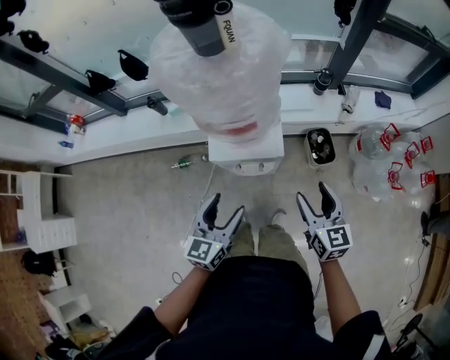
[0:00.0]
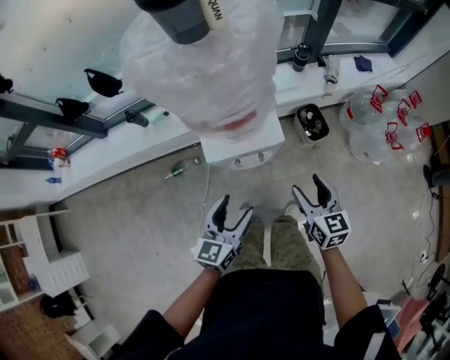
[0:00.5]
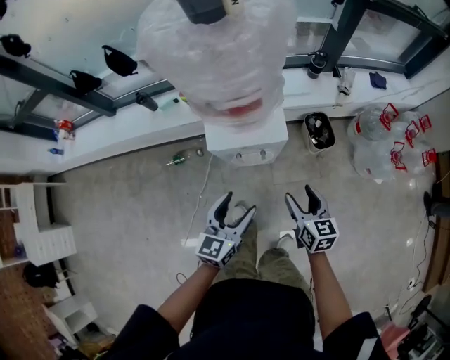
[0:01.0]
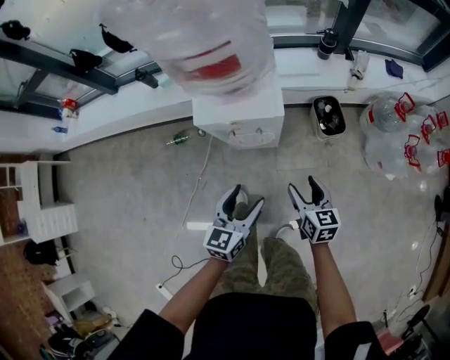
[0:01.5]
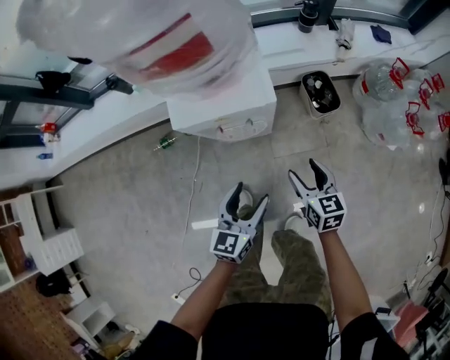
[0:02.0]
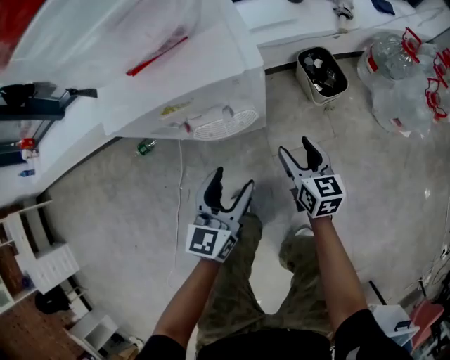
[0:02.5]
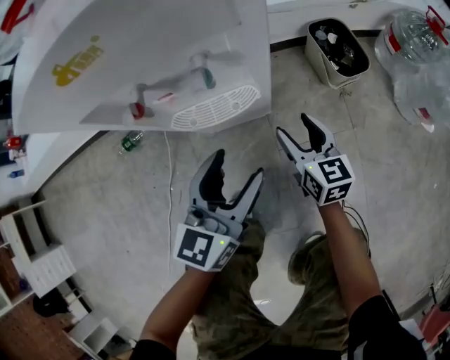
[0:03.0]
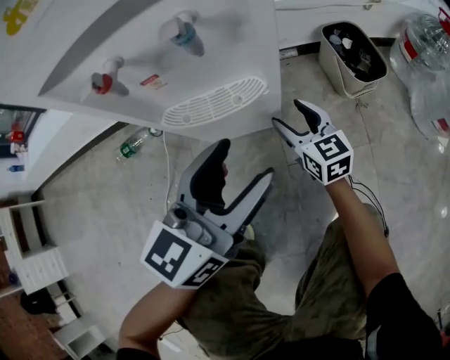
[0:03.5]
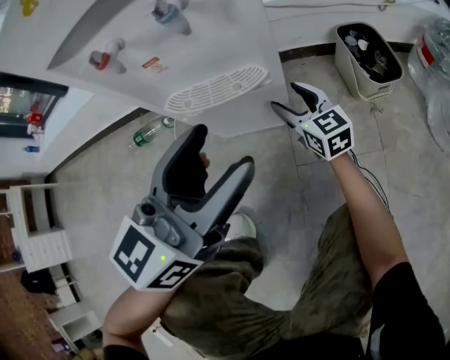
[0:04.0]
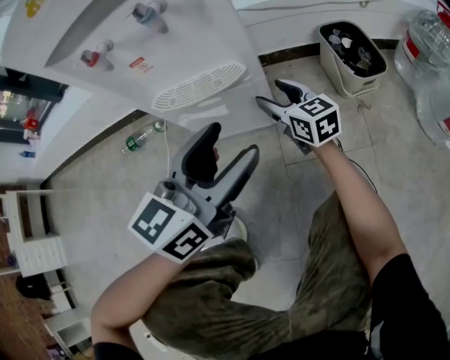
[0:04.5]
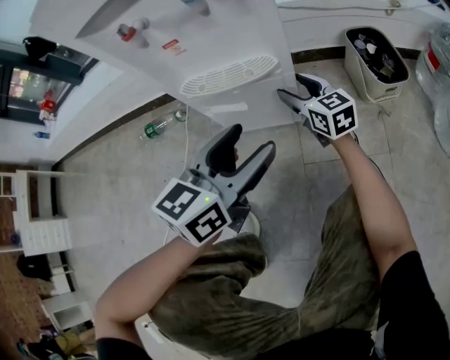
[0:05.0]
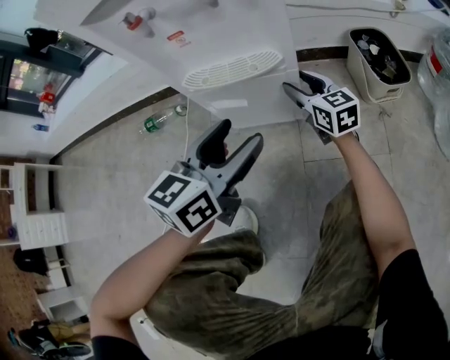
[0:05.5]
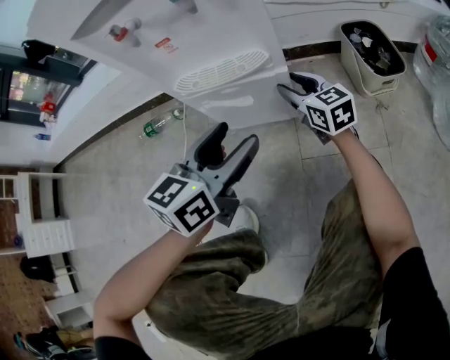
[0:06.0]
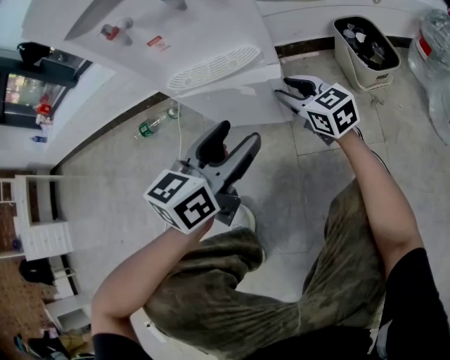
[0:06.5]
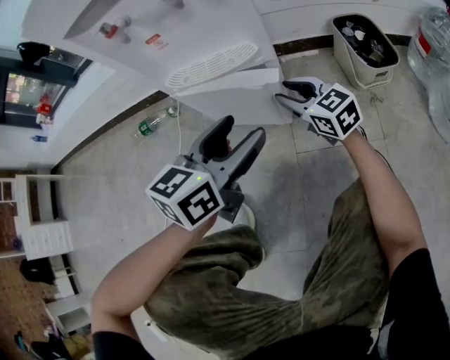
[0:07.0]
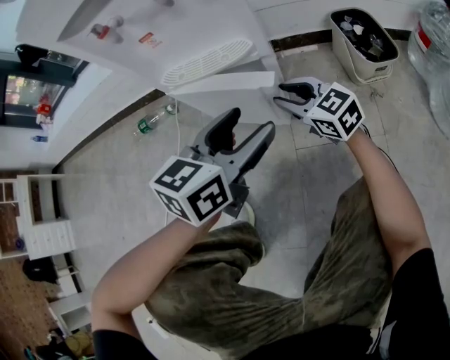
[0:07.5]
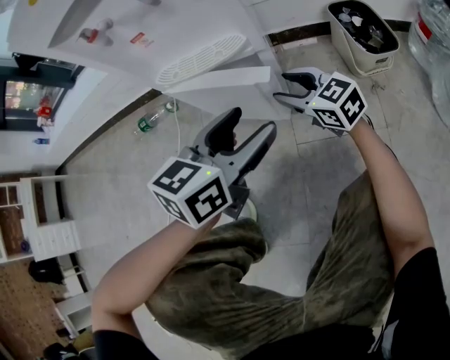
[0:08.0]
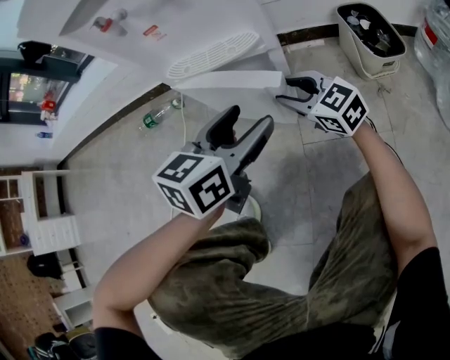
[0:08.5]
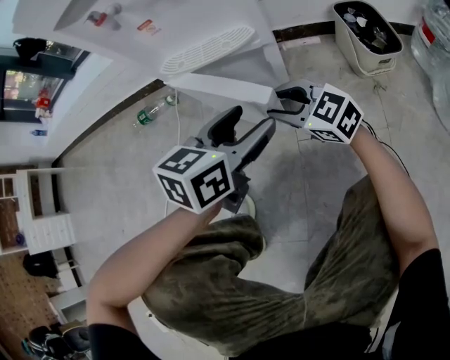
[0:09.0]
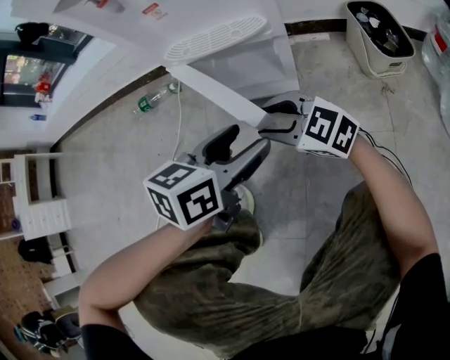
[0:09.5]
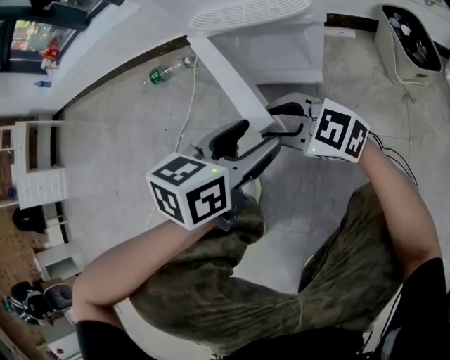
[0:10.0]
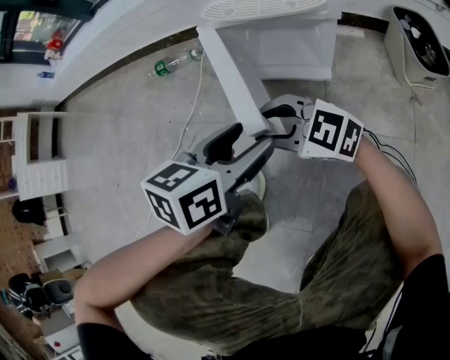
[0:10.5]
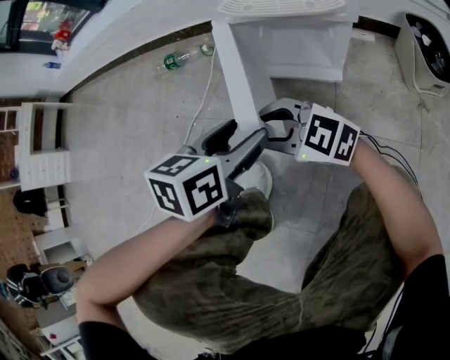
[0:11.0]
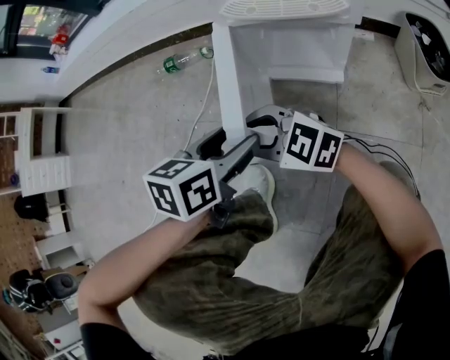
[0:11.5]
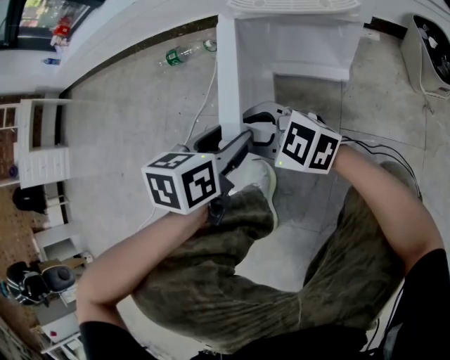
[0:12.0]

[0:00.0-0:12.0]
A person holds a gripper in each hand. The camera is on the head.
0:00.0 to 0:02.0: Both grippers travel together downward, approximately 25 cm.
0:02.0 to 0:04.0: The right gripper goes some 40 cm downward, and rotates roughly 30 degrees; the left gripper moves downward, roughly 25 cm.
0:04.0 to 0:06.0: The left gripper is displaced downward by about 10 cm.
0:06.0 to 0:08.0: The left gripper is displaced to the right by approximately 5 cm; the right gripper travels backward by about 5 cm.
0:08.0 to 0:10.0: The left gripper shifts about 10 cm to the left and downward, while the right gripper is displaced to the left and backward by some 20 cm, and turns by roughly 30 degrees.
0:10.0 to 0:12.0: Both grippers travel together to the left, approximately 10 cm.

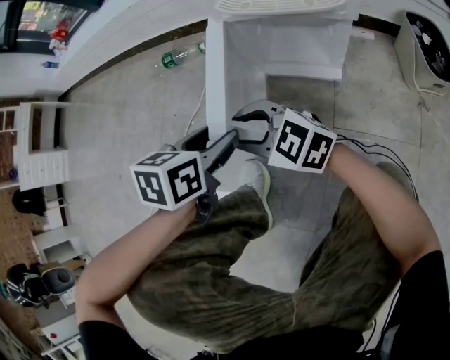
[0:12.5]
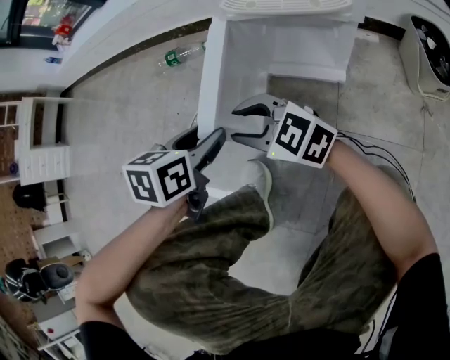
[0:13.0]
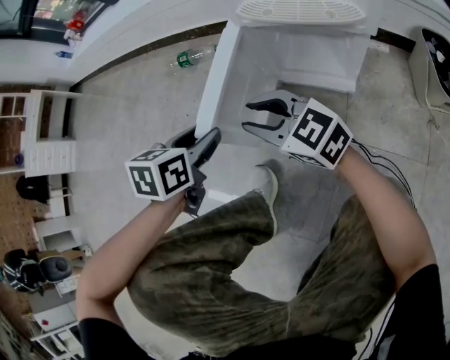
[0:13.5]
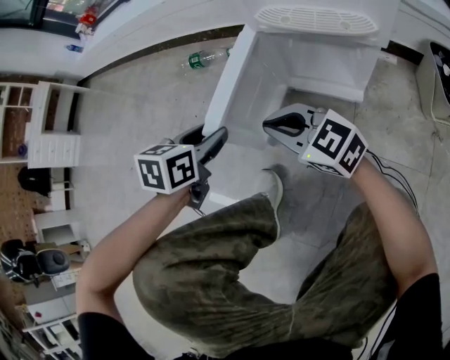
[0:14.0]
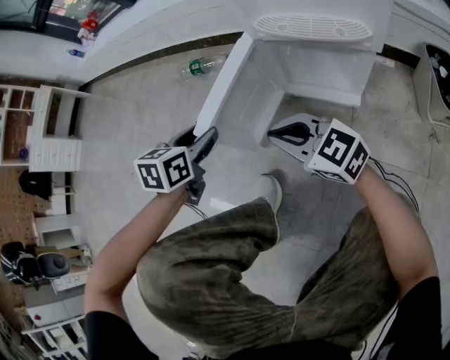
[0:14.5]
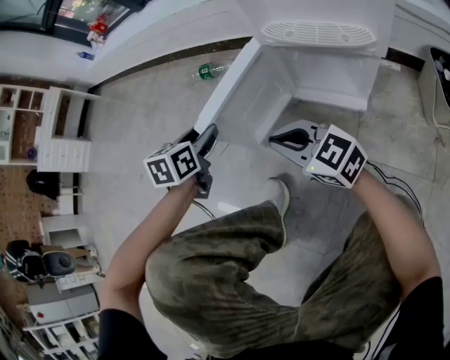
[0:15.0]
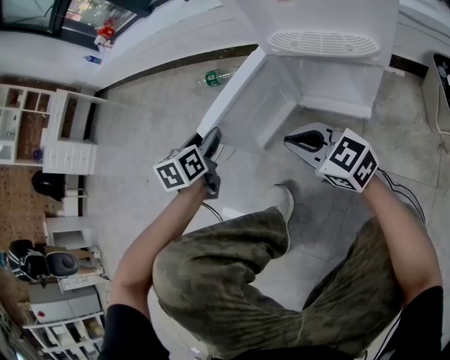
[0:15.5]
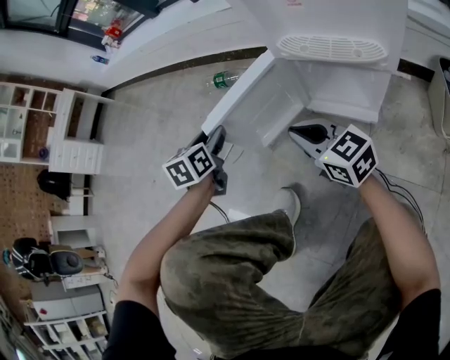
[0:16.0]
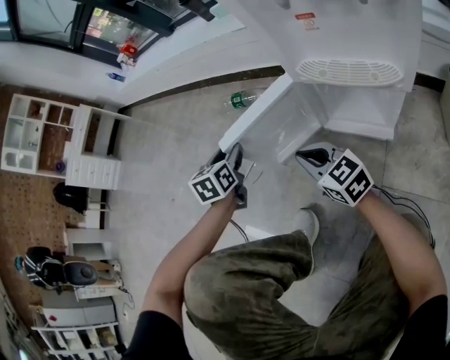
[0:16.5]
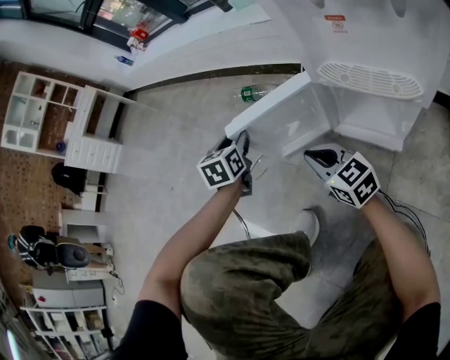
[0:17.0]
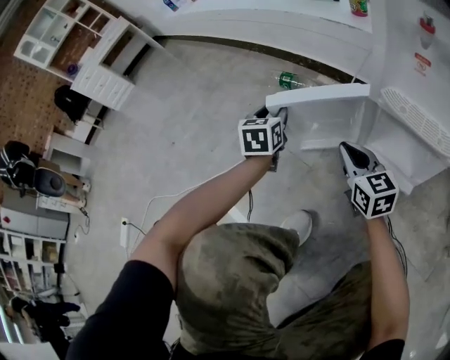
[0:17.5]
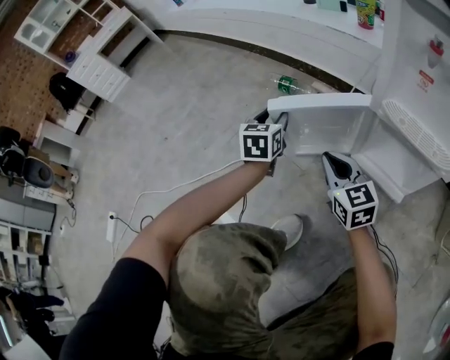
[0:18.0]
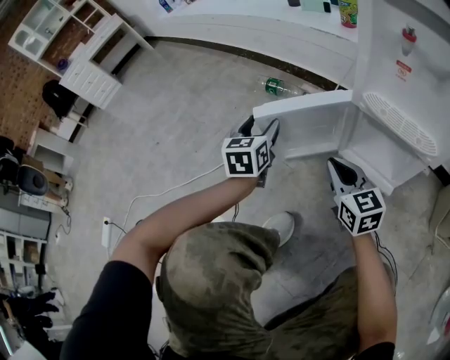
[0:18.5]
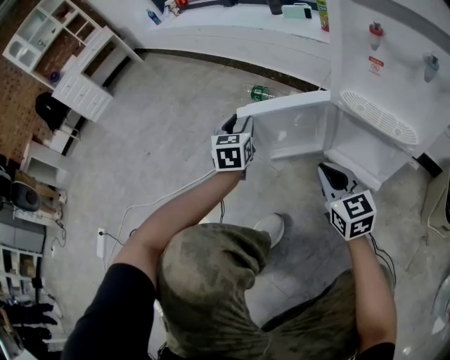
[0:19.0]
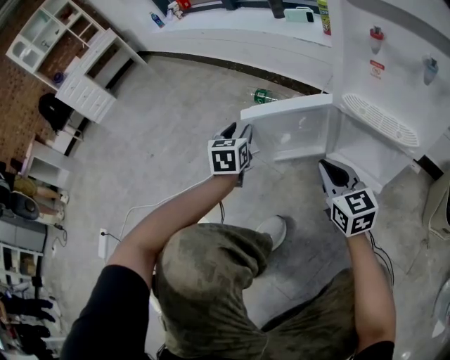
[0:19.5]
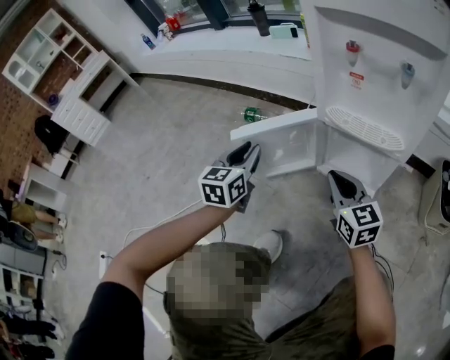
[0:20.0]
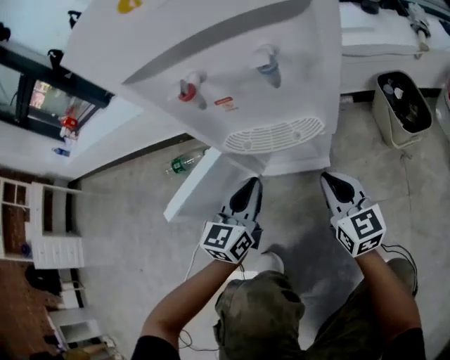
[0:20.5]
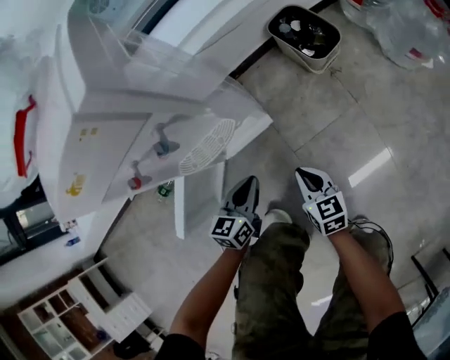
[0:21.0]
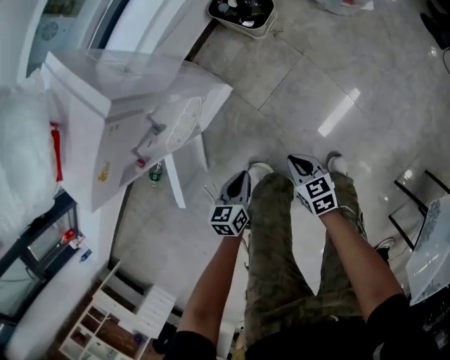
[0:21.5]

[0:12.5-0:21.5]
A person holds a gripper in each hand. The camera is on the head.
0:12.5 to 0:14.5: The left gripper moves to the left and forward, roughly 10 cm; the right gripper closes up.
0:14.5 to 0:17.0: The right gripper shifts roughly 10 cm forward. The left gripper travels forward by about 15 cm, and swivels roughly 30 degrees.
0:17.0 to 0:19.5: The right gripper is displaced upward by roughly 5 cm.
0:19.5 to 0:21.5: The left gripper ends up roughly 40 cm from where it was, rotates about 80 degrees, and closes its fingers, while the right gripper moves approximately 30 cm, and angles its fingers downward, by approximately 30 degrees.

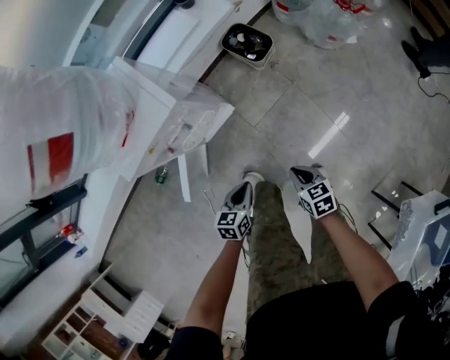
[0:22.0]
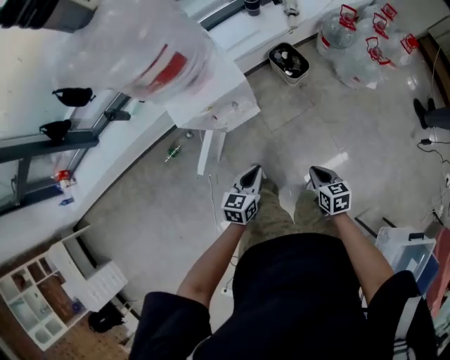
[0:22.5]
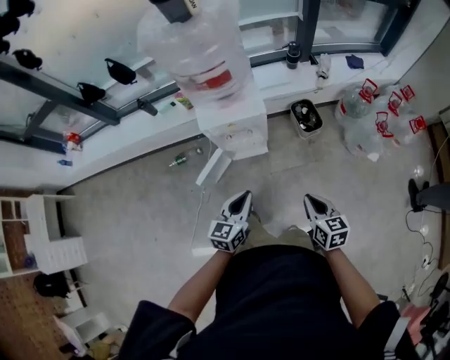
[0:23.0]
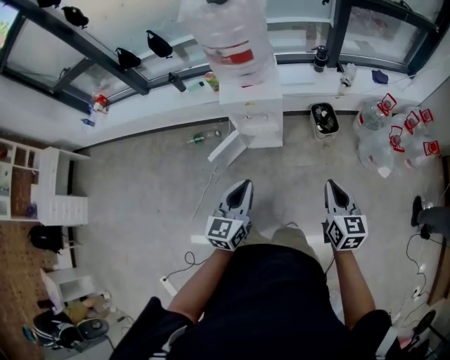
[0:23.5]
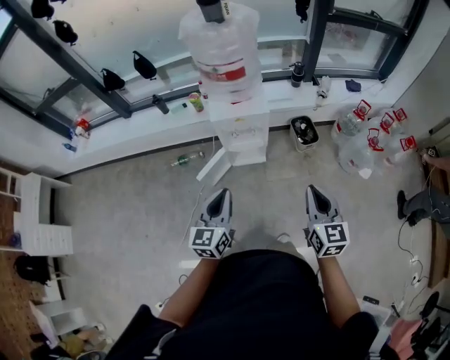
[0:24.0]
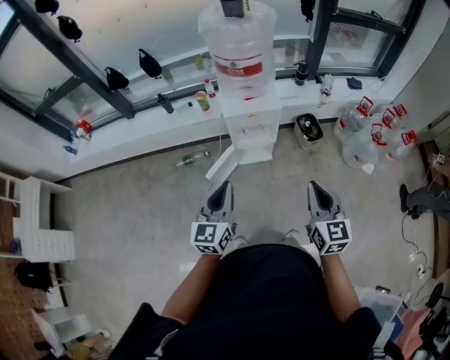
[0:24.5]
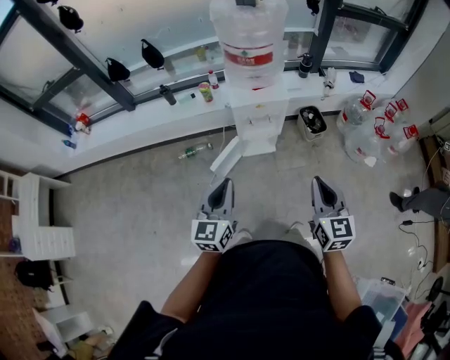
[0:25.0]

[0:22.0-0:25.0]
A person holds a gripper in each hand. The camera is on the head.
0:22.0 to 0:23.5: The two grippers go roughly 40 cm upward. The right gripper swivels about 40 degrees. Meanwhile the left gripper changes its angle by about 50 degrees.
0:23.5 to 0:25.0: The grippers both shift to the left by roughly 20 cm.

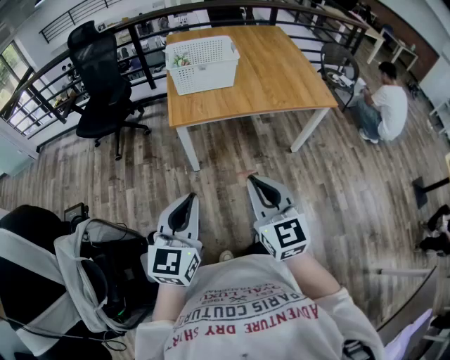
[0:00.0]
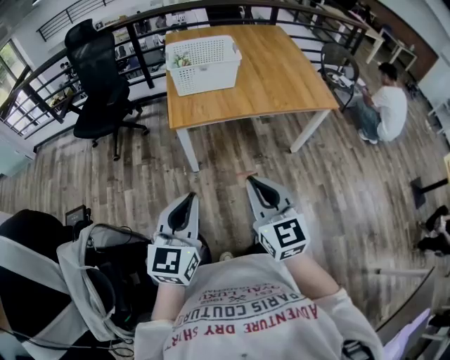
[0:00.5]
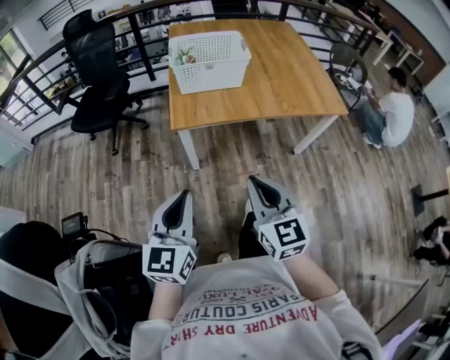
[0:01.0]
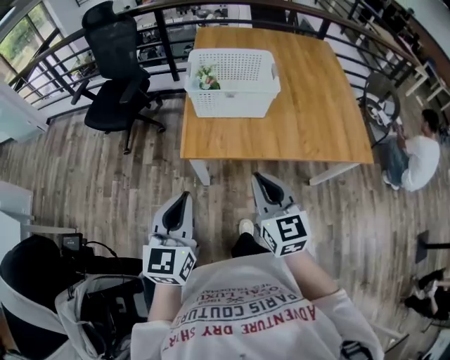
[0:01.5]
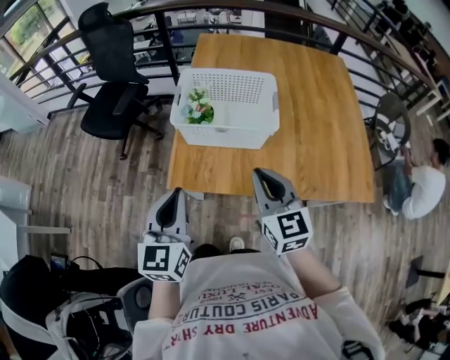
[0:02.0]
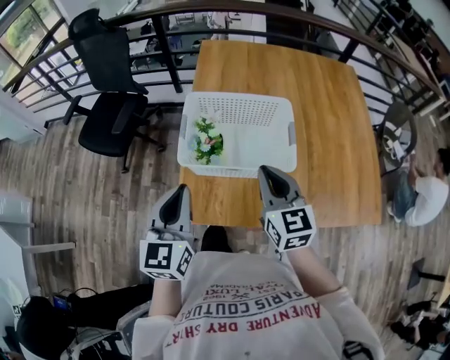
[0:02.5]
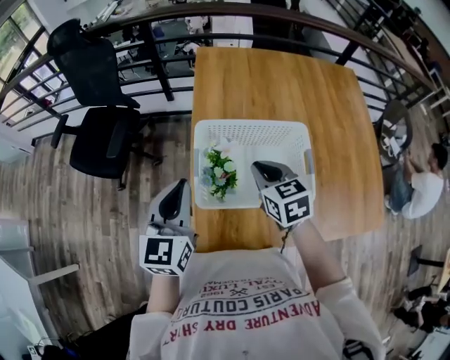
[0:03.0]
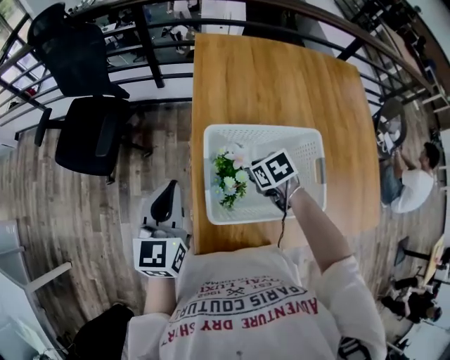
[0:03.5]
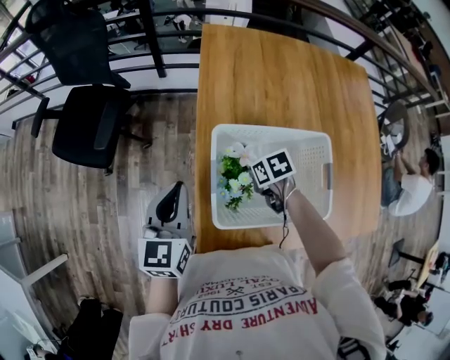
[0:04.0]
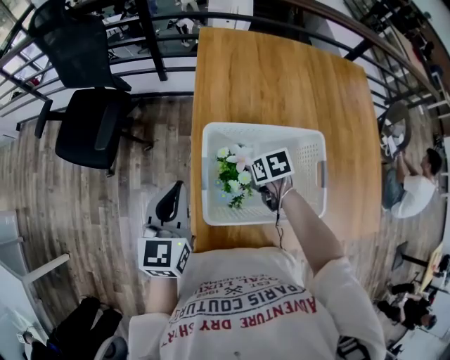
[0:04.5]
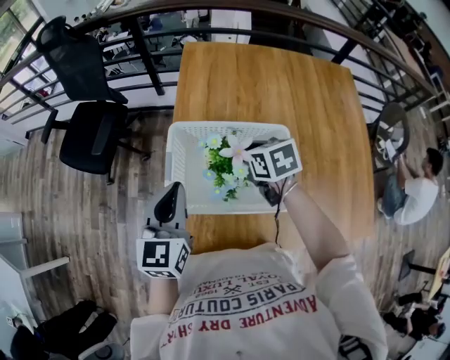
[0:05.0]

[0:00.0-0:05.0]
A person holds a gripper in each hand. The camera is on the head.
0:00.0 to 0:02.5: Both grippers are carried forward, some 60 cm.
0:02.5 to 0:05.0: The left gripper moves forward, some 15 cm, while the right gripper is displaced forward and downward by some 20 cm, and tips its fingers downward by some 30 degrees.
